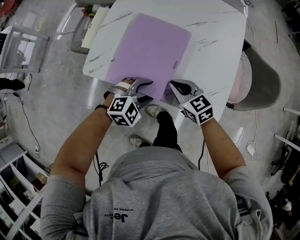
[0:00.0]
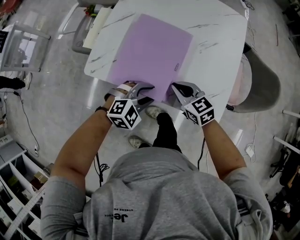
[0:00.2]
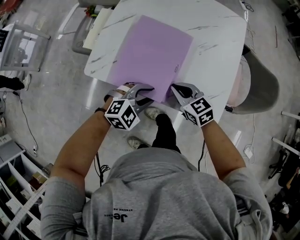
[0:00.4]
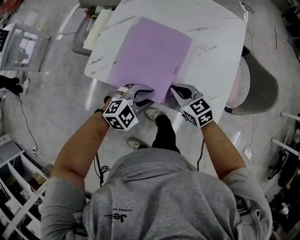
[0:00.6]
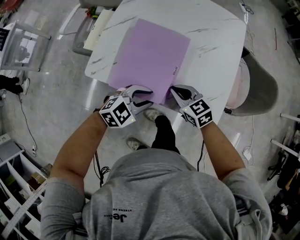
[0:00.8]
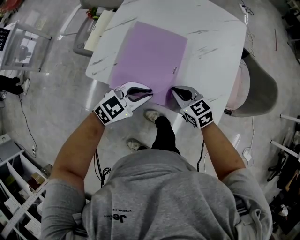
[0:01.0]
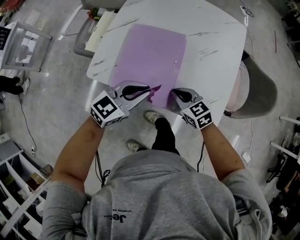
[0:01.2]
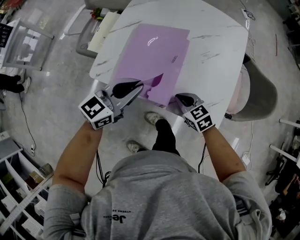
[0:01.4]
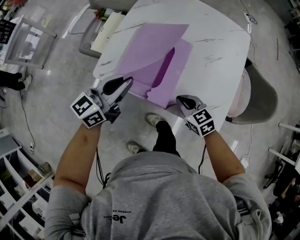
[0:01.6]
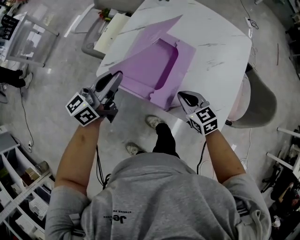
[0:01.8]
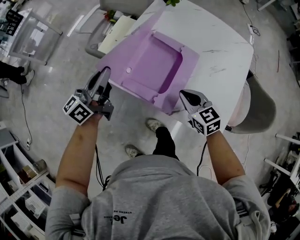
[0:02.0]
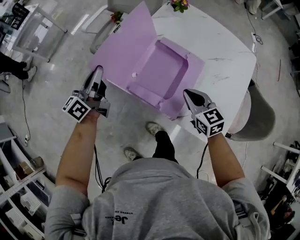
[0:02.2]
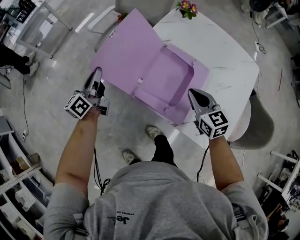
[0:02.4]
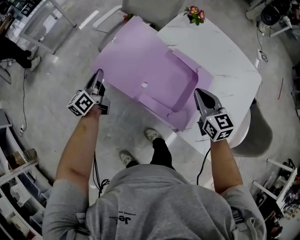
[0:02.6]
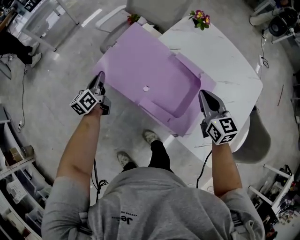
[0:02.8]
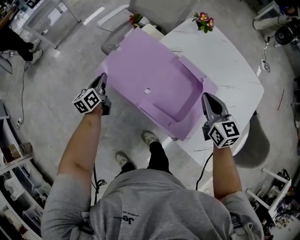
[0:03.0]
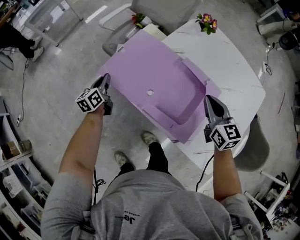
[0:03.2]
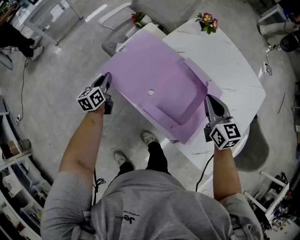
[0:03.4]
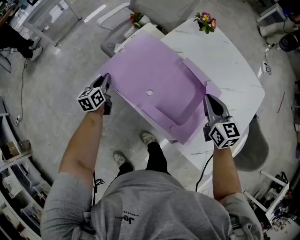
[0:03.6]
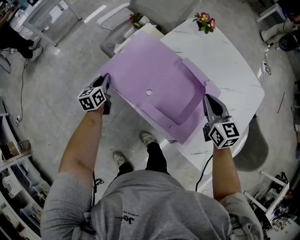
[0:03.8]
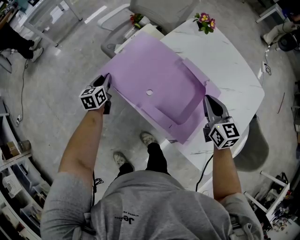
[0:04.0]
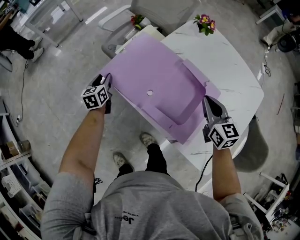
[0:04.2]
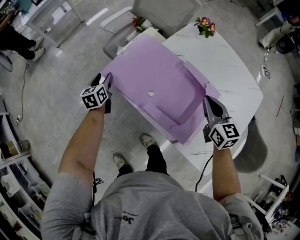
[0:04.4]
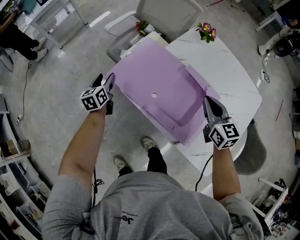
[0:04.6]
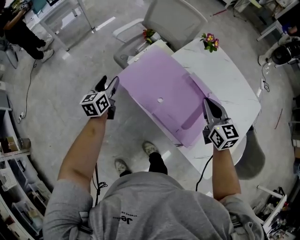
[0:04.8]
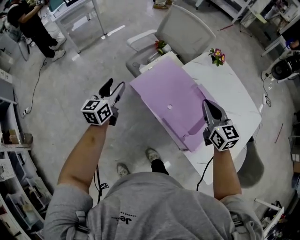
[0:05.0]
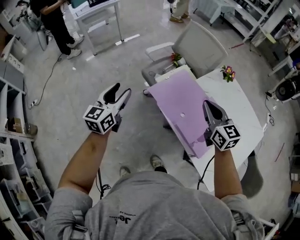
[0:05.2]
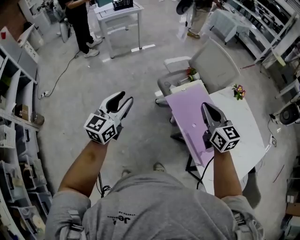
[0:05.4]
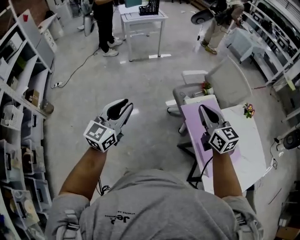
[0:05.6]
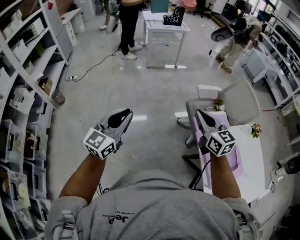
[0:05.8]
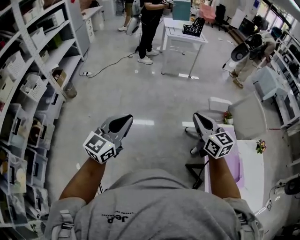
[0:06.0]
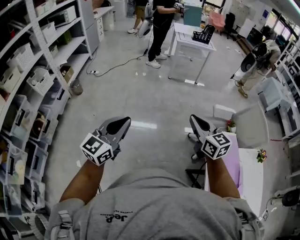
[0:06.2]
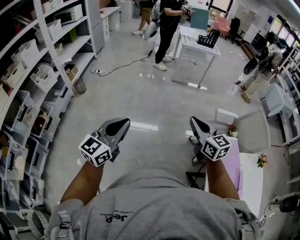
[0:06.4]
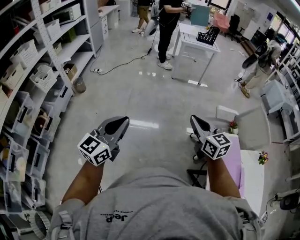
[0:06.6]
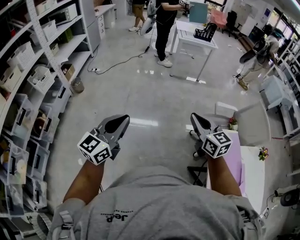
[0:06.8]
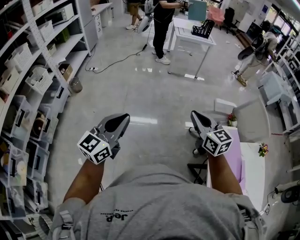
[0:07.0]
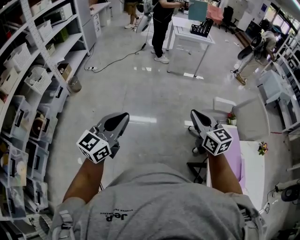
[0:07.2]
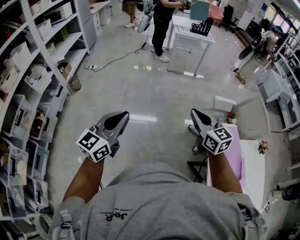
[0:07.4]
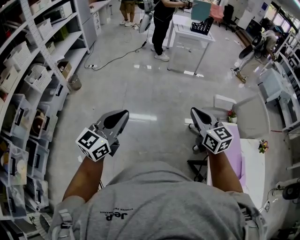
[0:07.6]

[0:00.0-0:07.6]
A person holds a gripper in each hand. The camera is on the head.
0:00.0 to 0:01.6: The left gripper is displaced upward and to the left by some 20 cm, angles its fingers upward, by about 40 degrees, and closes up.
0:01.6 to 0:03.0: The left gripper moves to the left, downward and forward, roughly 35 cm, and turns by roughly 60 degrees. The right gripper moves forward and upward, approximately 20 cm.
0:03.0 to 0:04.6: The left gripper opens.
0:04.6 to 0:06.0: The left gripper moves roughly 60 cm, swivels approximately 40 degrees, and closes, while the right gripper moves approximately 60 cm, and swivels approximately 50 degrees.
0:06.0 to 0:07.6: Both grippers move to the left, about 5 cm.

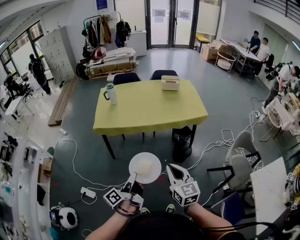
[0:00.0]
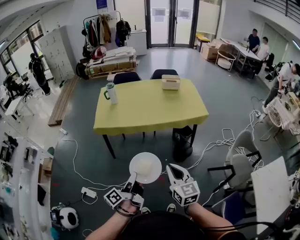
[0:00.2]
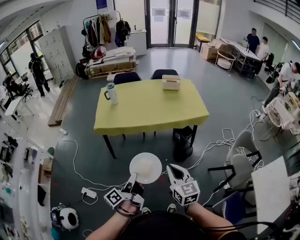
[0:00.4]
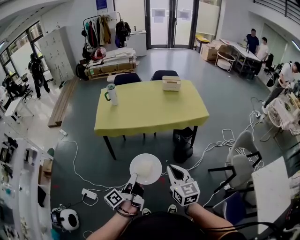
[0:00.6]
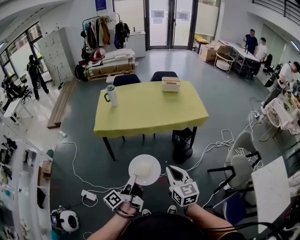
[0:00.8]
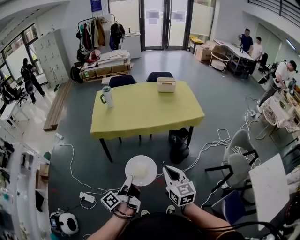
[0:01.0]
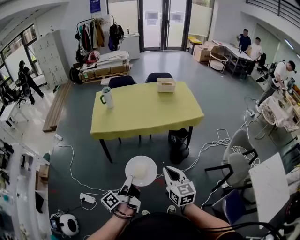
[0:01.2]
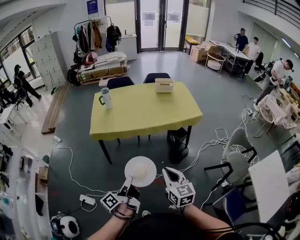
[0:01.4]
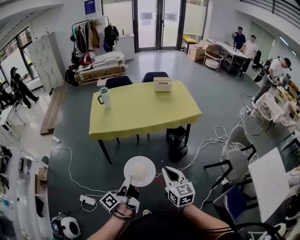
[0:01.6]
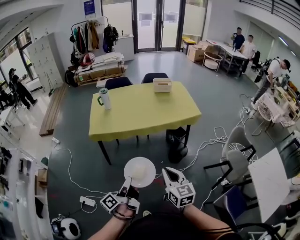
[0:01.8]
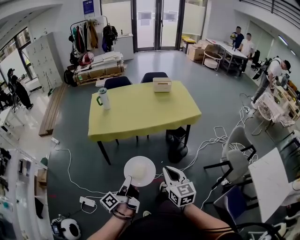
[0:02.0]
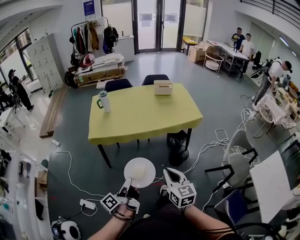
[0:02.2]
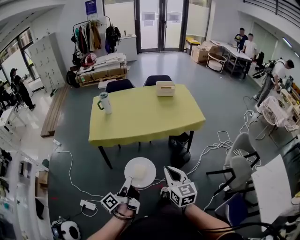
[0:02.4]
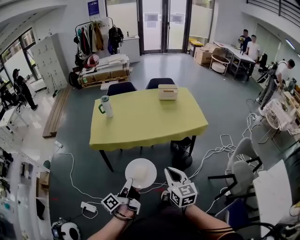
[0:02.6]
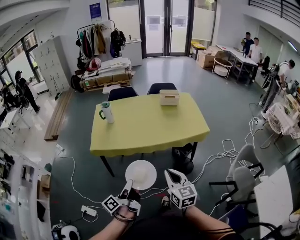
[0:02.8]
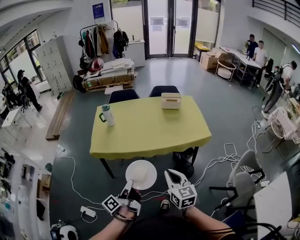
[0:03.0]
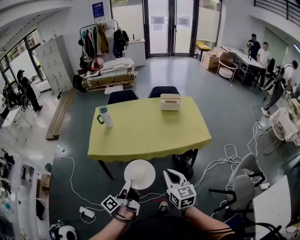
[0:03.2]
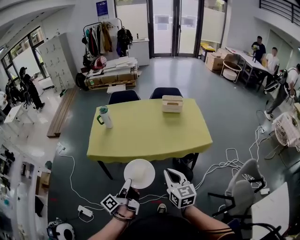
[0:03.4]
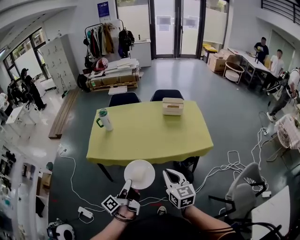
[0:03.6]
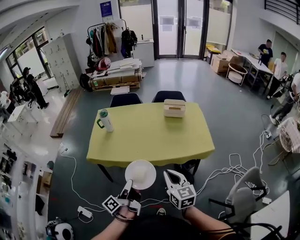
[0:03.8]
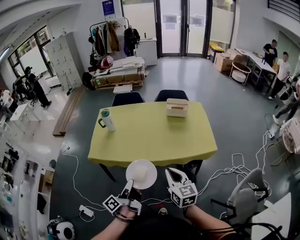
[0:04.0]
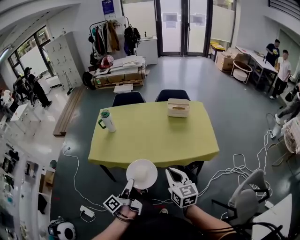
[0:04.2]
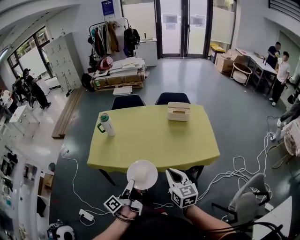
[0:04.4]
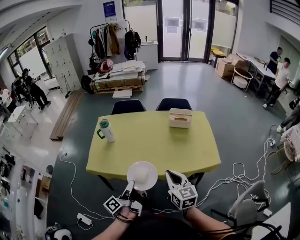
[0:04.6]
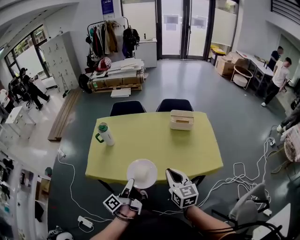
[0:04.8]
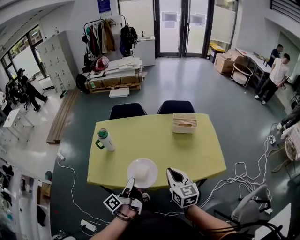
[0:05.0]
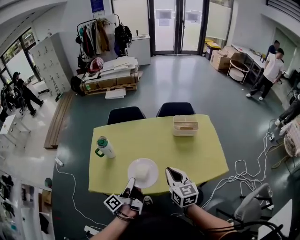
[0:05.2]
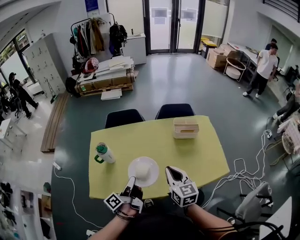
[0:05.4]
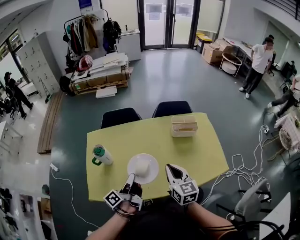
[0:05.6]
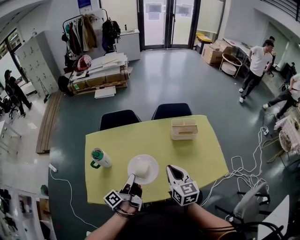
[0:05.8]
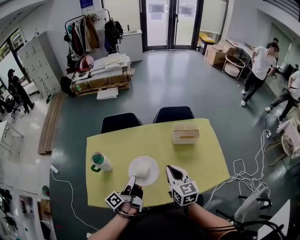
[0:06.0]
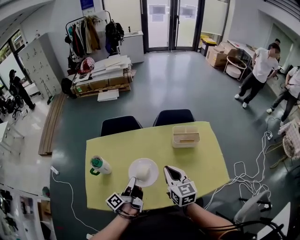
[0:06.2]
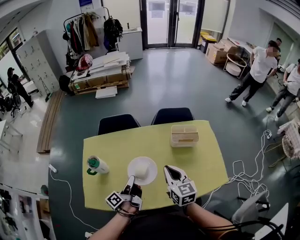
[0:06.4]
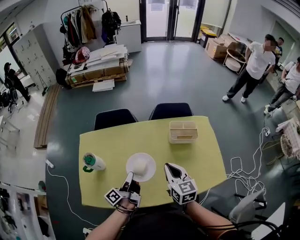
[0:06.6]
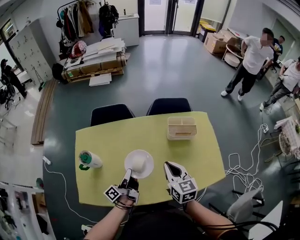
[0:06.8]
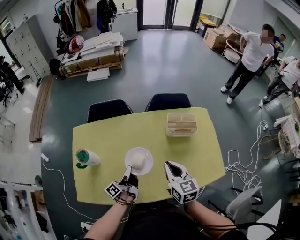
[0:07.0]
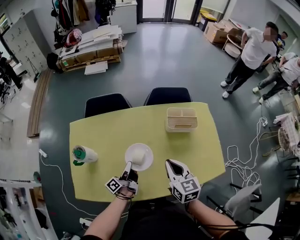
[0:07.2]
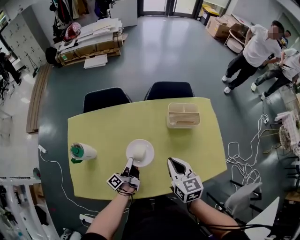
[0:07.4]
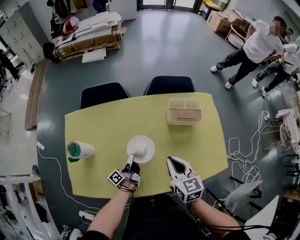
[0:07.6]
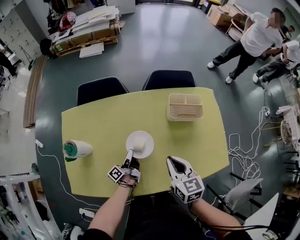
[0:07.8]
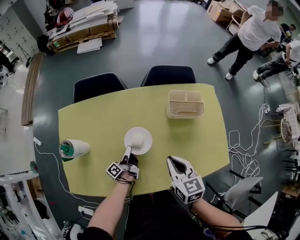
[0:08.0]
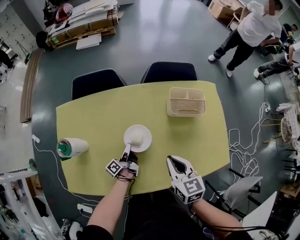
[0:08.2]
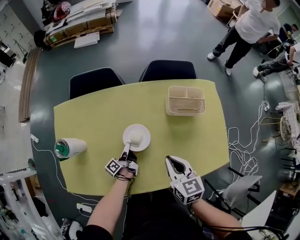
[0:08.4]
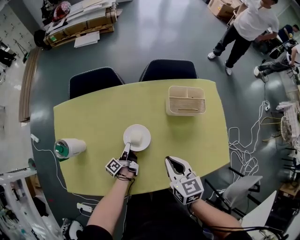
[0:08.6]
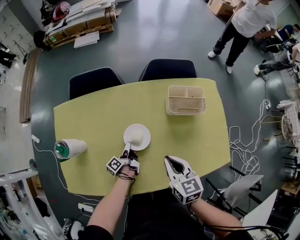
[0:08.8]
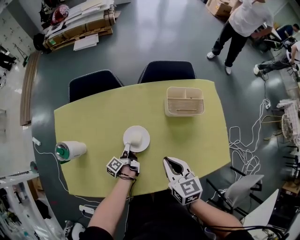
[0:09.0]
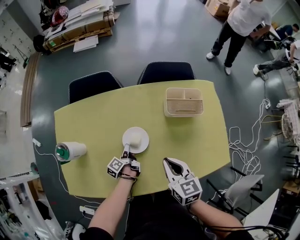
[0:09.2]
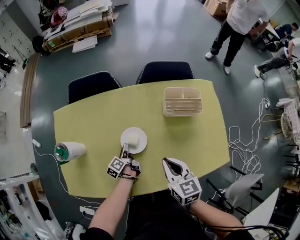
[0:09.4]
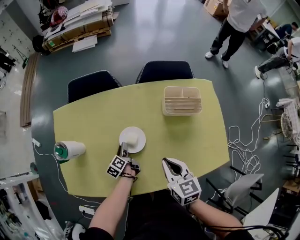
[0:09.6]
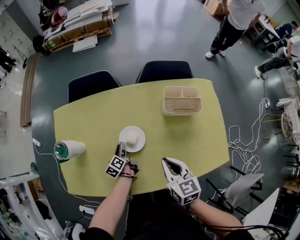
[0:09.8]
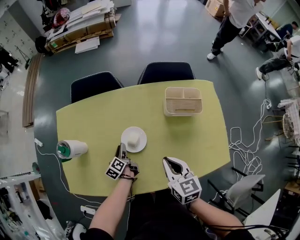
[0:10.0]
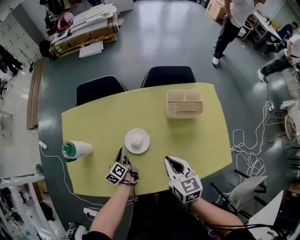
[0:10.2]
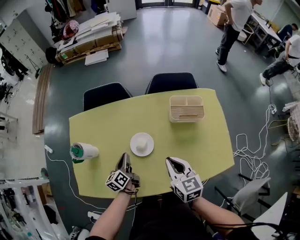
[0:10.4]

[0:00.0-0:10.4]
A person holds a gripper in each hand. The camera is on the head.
0:01.4 to 0:03.0: The right gripper ends up some 20 cm from where it was.
0:03.0 to 0:04.4: The right gripper moves roughly 20 cm.
0:04.4 to 0:06.0: The right gripper moves approximately 35 cm.
0:06.0 to 0:07.4: The right gripper is displaced downward by approximately 10 cm.
0:07.4 to 0:09.0: The right gripper goes roughly 5 cm downward.

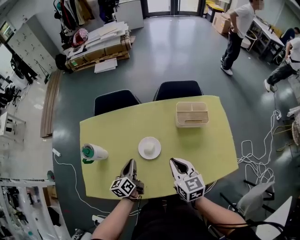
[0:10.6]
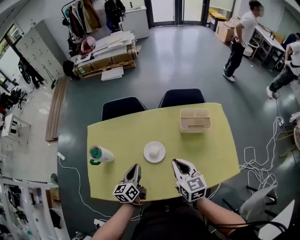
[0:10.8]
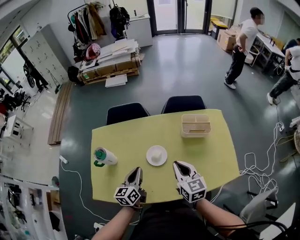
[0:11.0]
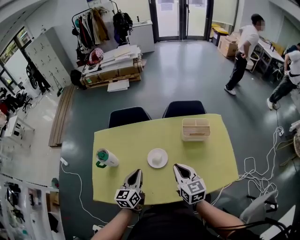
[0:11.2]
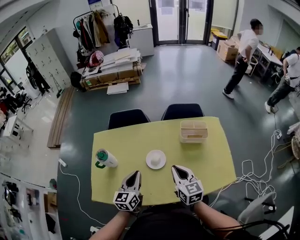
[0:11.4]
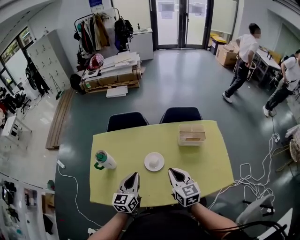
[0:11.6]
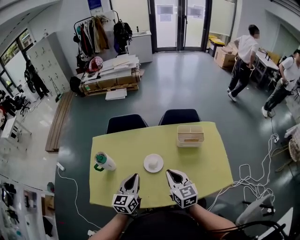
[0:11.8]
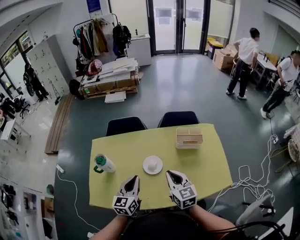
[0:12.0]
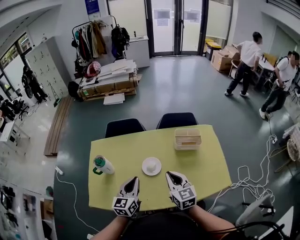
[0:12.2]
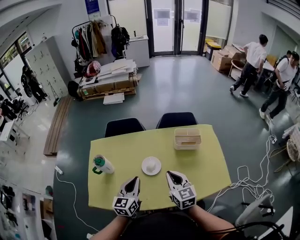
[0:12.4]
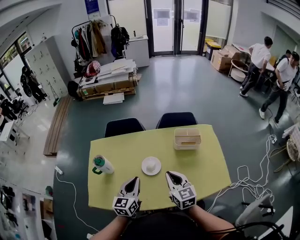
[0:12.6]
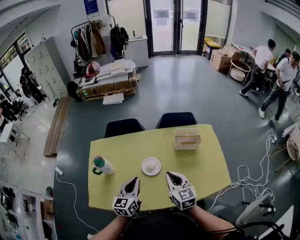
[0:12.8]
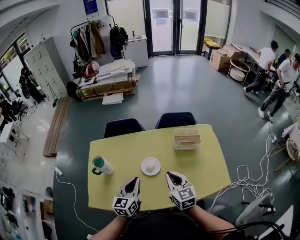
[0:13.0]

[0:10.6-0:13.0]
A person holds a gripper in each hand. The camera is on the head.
0:10.6 to 0:11.8: The right gripper is displaced upward by some 10 cm.

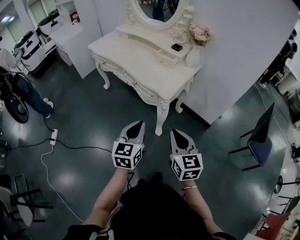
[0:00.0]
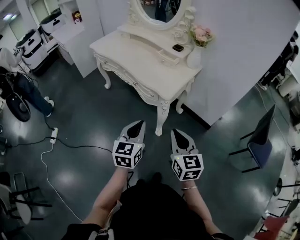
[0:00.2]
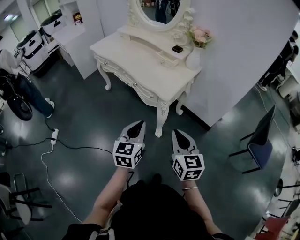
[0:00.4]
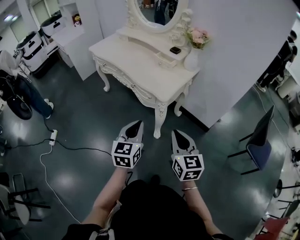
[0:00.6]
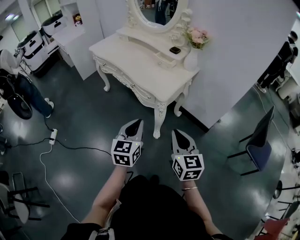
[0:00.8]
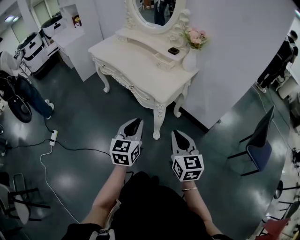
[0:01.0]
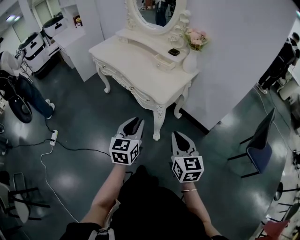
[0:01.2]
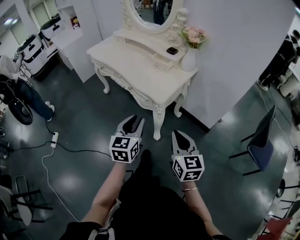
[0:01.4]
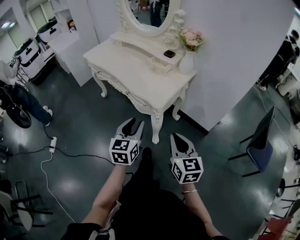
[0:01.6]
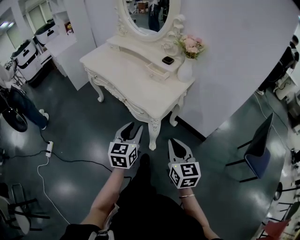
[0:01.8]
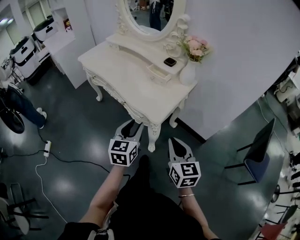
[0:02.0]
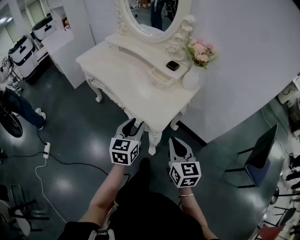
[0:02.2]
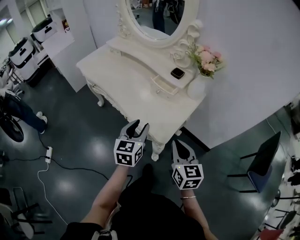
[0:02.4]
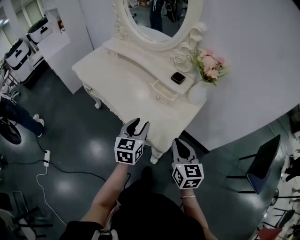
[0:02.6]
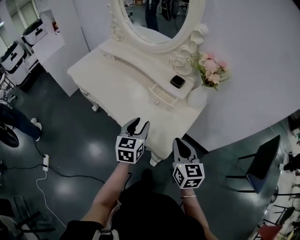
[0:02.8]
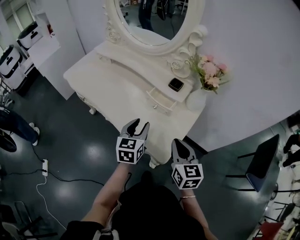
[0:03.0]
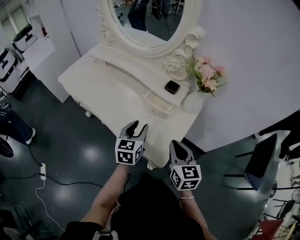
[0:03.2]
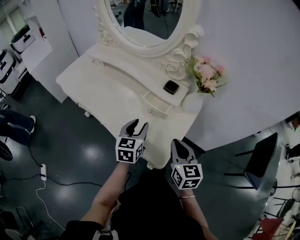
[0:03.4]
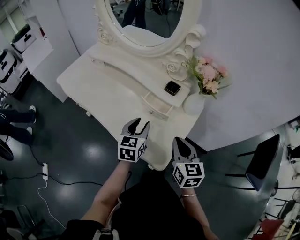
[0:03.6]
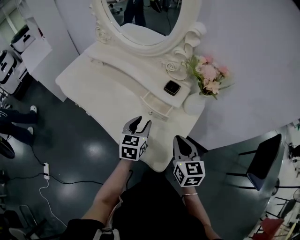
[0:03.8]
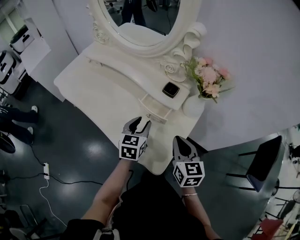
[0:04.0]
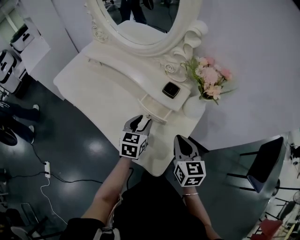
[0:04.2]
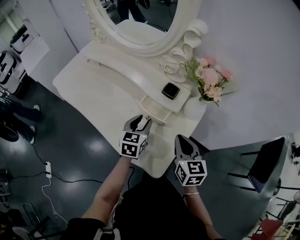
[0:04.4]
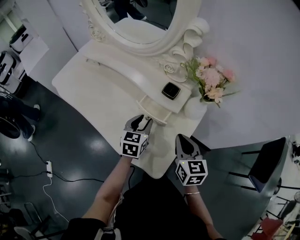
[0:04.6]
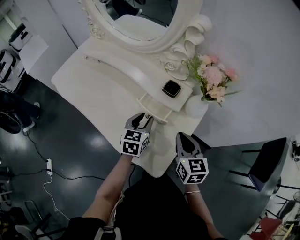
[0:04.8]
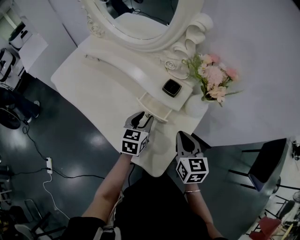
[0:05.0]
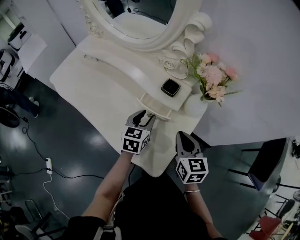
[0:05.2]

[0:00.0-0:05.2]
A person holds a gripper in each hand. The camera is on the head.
0:00.0 to 0:01.8: The left gripper goes some 10 cm forward, and opens its fingers. Meanwhile the right gripper moves forward and to the right, roughly 10 cm.
0:01.8 to 0:03.4: Both grippers travel together forward, about 30 cm.
0:03.4 to 0:05.2: Both grippers move forward, about 10 cm.
